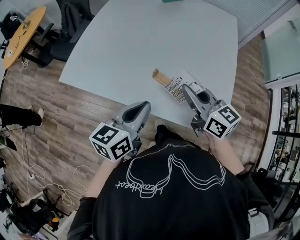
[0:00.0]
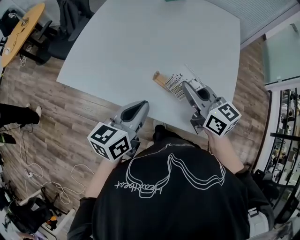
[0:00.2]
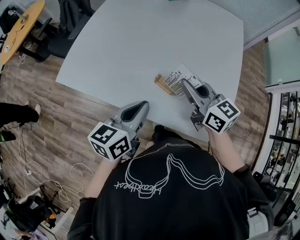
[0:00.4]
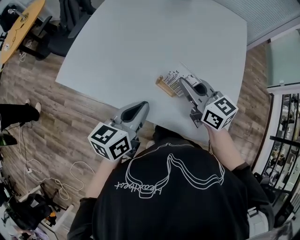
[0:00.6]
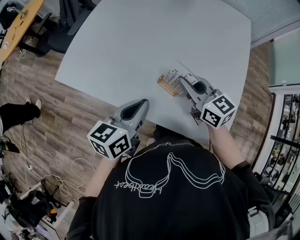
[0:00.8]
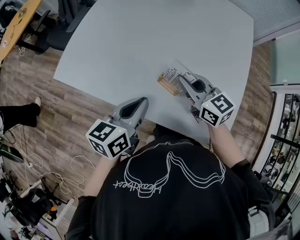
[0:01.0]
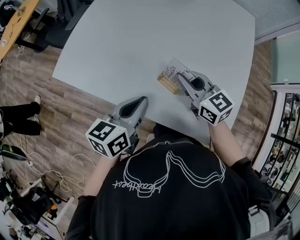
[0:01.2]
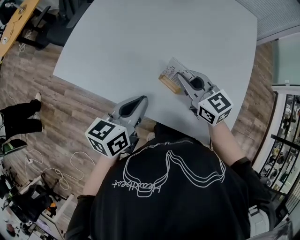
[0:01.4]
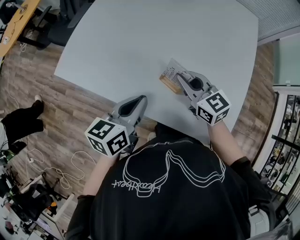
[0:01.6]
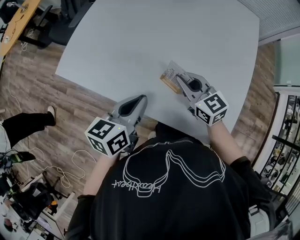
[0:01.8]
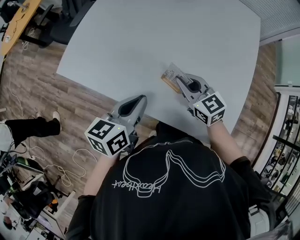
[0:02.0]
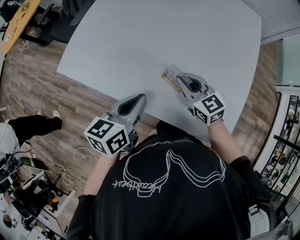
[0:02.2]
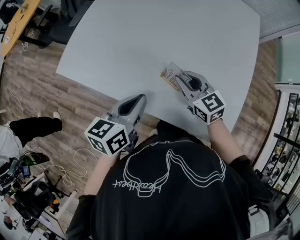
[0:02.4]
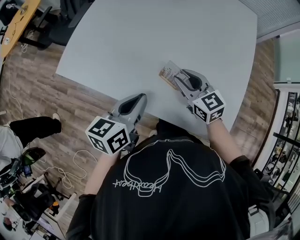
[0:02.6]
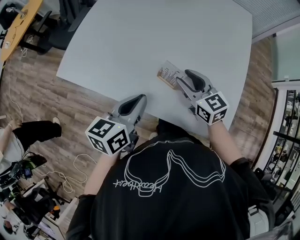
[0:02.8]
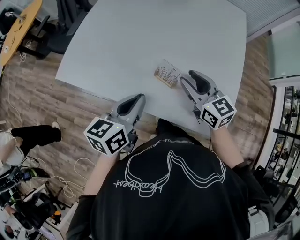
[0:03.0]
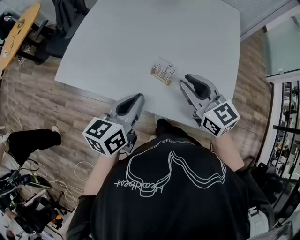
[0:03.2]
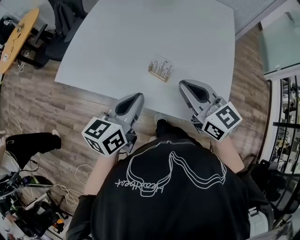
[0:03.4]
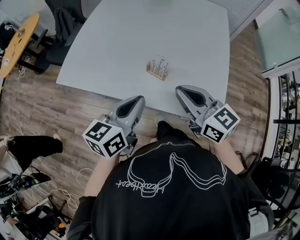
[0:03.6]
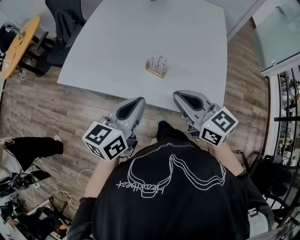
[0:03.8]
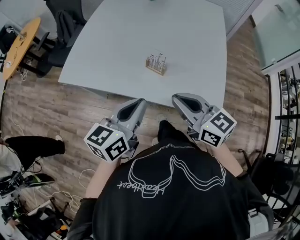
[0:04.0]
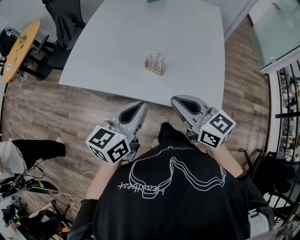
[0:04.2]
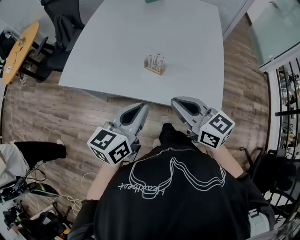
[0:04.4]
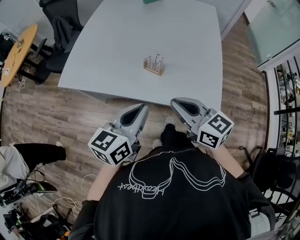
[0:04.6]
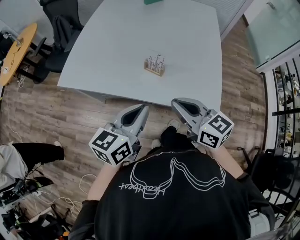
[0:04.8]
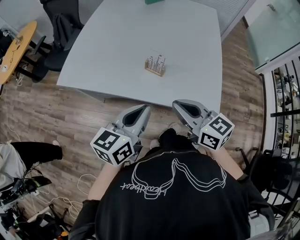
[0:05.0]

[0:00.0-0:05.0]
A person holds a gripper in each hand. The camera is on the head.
0:00.0 to 0:01.6: The two grippers go approximately 10 cm forward and downward.
0:01.6 to 0:03.4: The right gripper travels backward and upward by roughly 15 cm, and opens, then closes again; the left gripper travels backward by roughly 5 cm.
0:03.4 to 0:05.0: Both grippers move backward, approximately 10 cm.

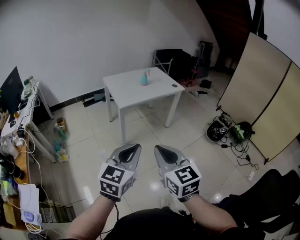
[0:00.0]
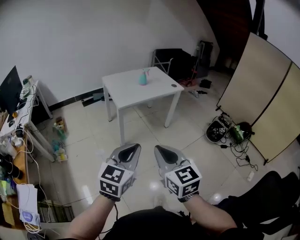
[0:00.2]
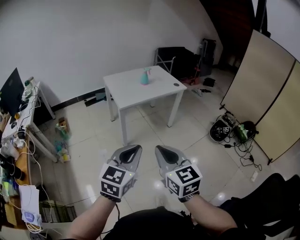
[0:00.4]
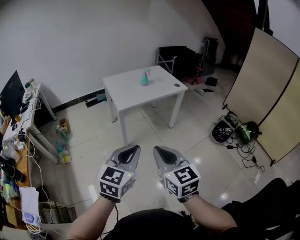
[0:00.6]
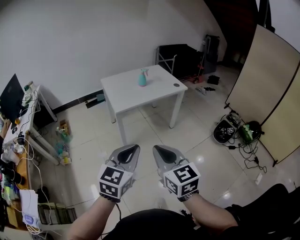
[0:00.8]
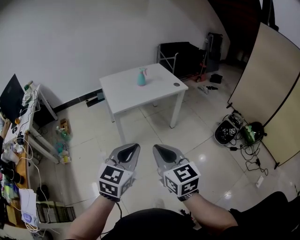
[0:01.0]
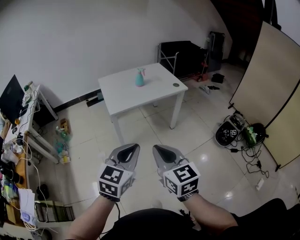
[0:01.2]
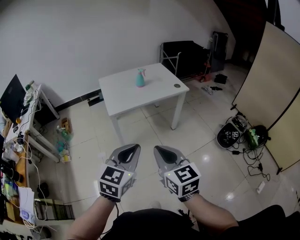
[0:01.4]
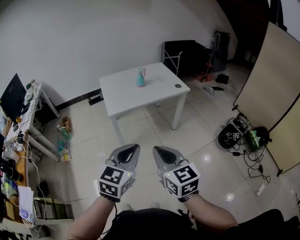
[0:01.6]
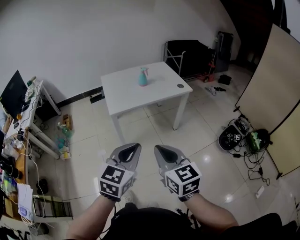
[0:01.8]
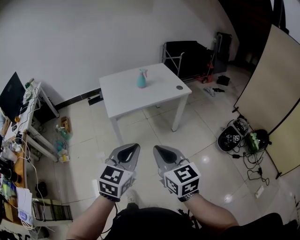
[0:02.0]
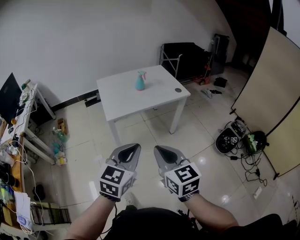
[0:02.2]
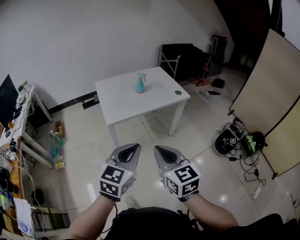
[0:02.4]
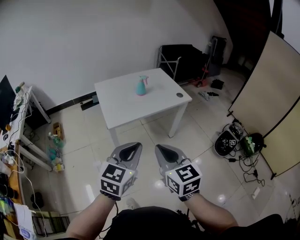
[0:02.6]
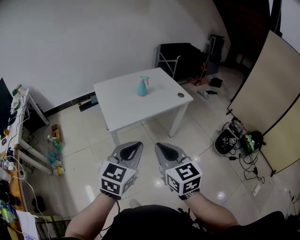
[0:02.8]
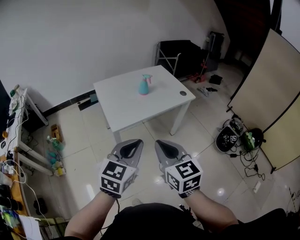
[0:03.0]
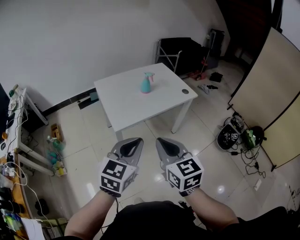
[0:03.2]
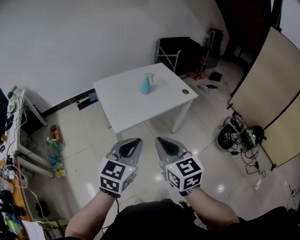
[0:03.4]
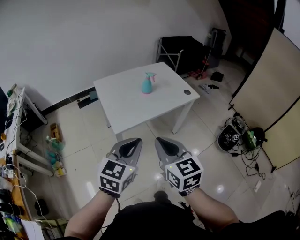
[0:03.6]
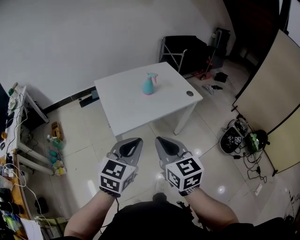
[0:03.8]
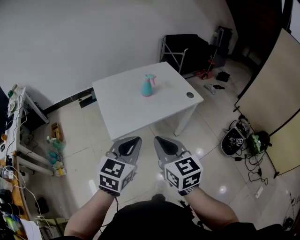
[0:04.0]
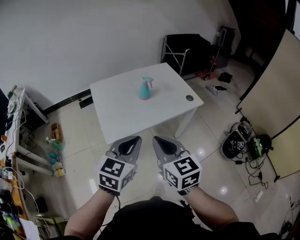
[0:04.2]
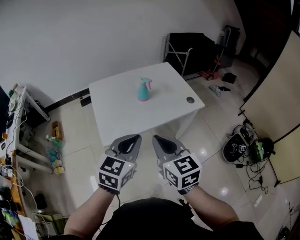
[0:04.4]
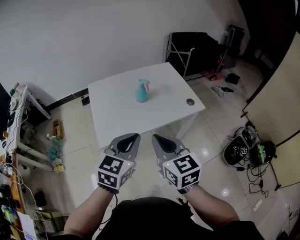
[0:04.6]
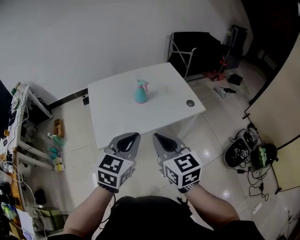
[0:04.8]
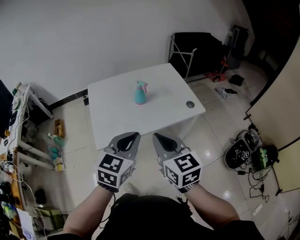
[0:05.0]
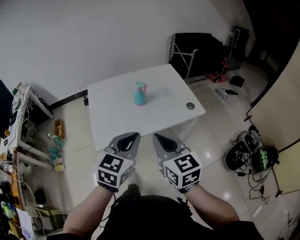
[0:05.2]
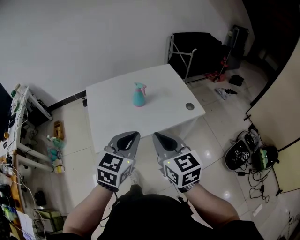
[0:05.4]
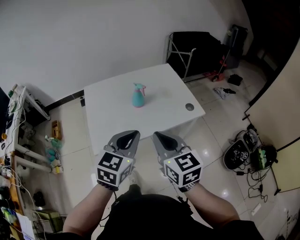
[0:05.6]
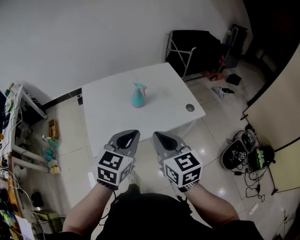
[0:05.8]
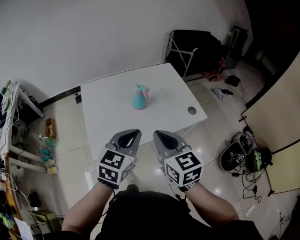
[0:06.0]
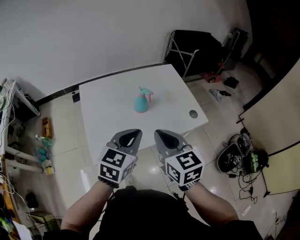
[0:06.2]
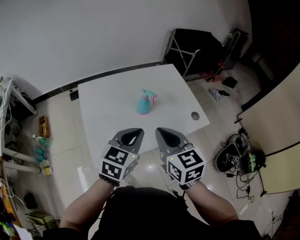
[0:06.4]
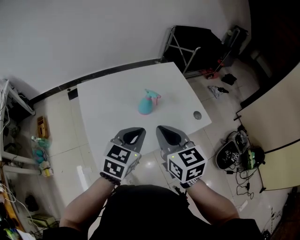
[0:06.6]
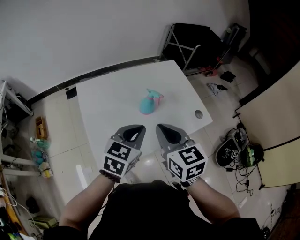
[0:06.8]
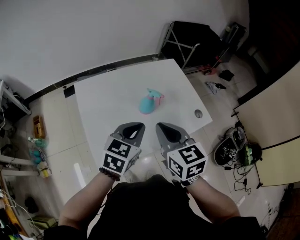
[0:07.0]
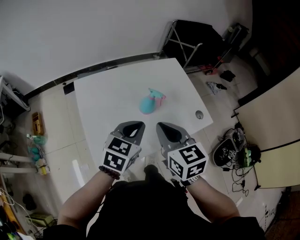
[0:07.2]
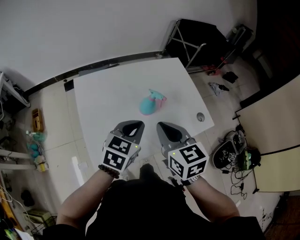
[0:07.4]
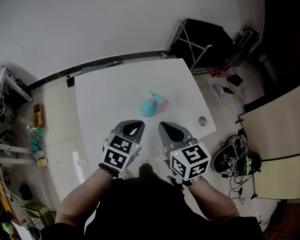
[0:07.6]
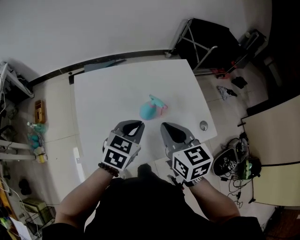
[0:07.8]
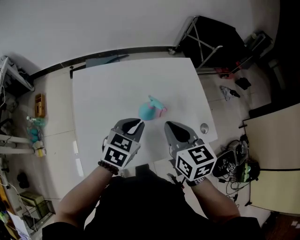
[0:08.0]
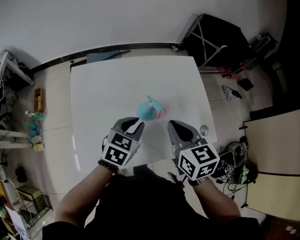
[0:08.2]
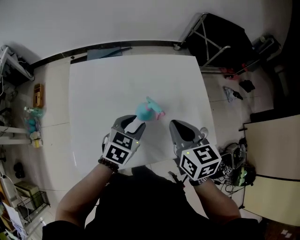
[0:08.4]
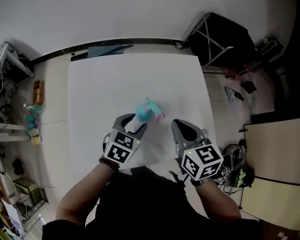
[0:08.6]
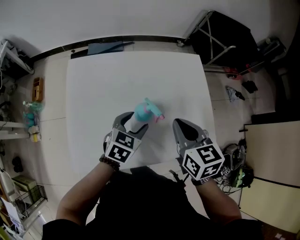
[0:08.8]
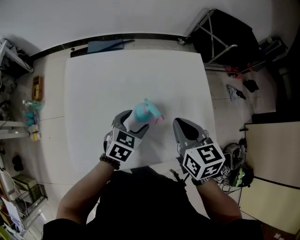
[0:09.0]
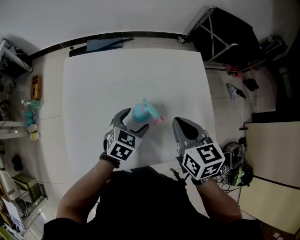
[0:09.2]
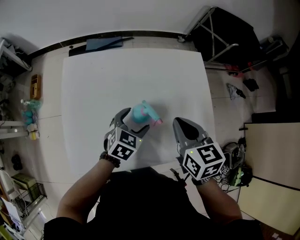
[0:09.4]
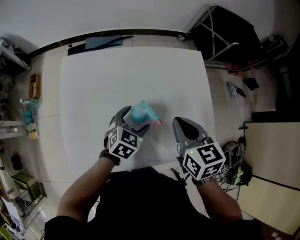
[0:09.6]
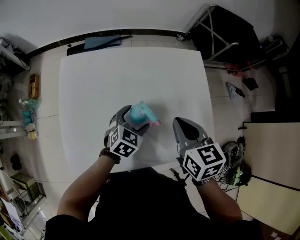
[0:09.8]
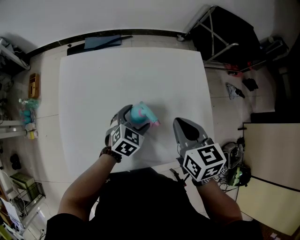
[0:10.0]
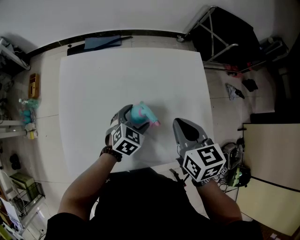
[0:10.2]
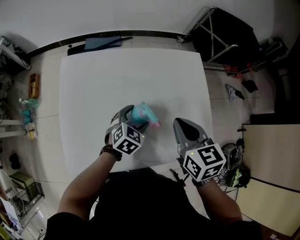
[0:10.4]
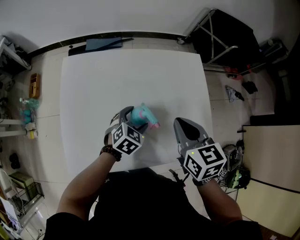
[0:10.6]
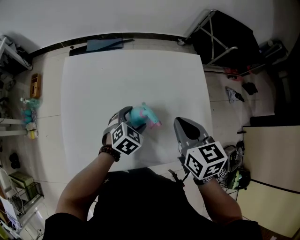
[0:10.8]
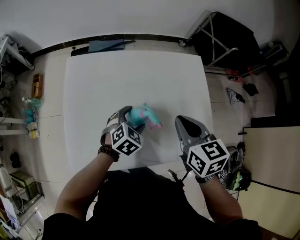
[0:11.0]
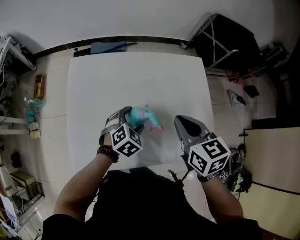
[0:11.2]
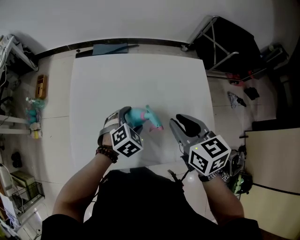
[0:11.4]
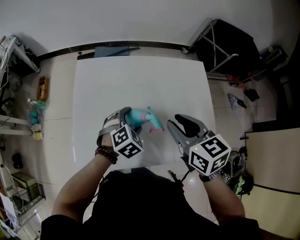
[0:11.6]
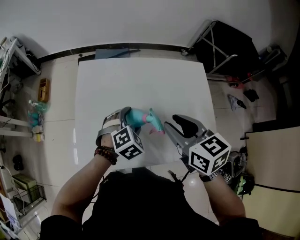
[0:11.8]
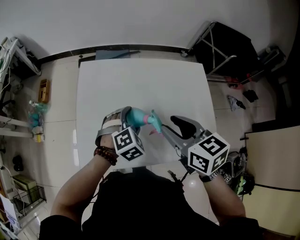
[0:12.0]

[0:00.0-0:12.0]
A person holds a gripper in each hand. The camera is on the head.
0:00.0 to 0:01.6: Both grippers move forward and to the right, roughly 25 cm.
0:01.6 to 0:03.0: The grippers both shift forward and to the left by about 20 cm.
0:03.0 to 0:04.4: Both grippers travel together forward, about 20 cm.
0:04.4 to 0:06.0: Both grippers move forward, about 15 cm.
0:06.0 to 0:07.6: The left gripper travels forward and downward by some 15 cm. Meanwhile the right gripper heads forward and to the left, covering approximately 15 cm.
0:07.6 to 0:09.0: The right gripper travels forward, to the right and downward by approximately 15 cm, while the left gripper is displaced downward and forward by roughly 15 cm, and opens its fingers.
0:09.0 to 0:10.4: The left gripper ends up some 5 cm from where it was.
0:10.4 to 0:12.0: The right gripper is displaced to the left by approximately 10 cm, and opens its fingers, while the left gripper moves to the left and upward, approximately 10 cm, and changes its angle by about 30 degrees.

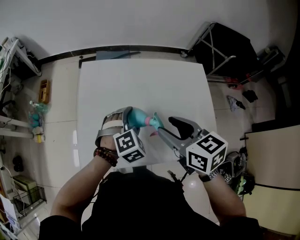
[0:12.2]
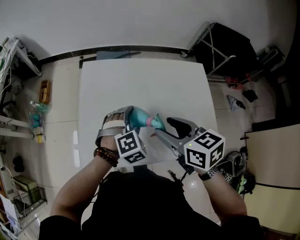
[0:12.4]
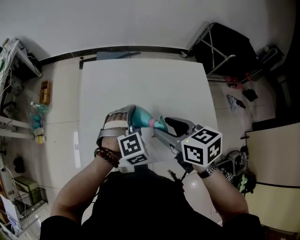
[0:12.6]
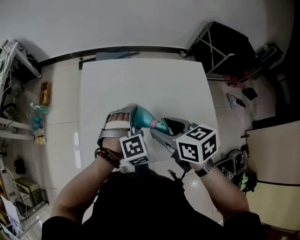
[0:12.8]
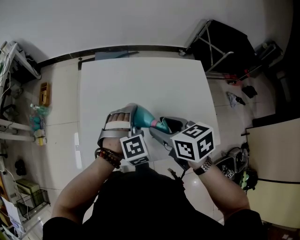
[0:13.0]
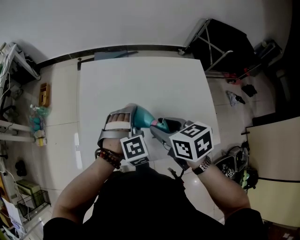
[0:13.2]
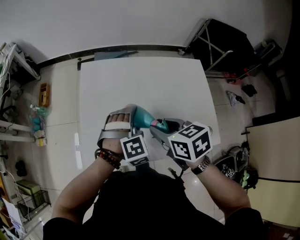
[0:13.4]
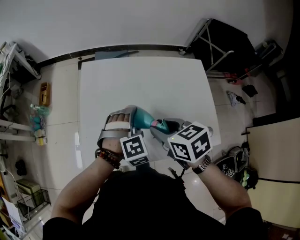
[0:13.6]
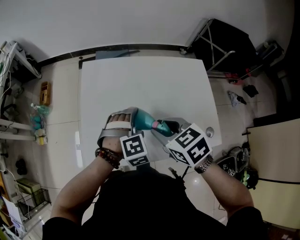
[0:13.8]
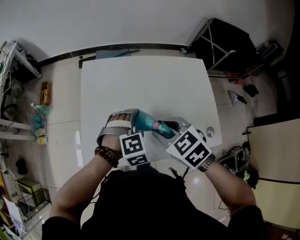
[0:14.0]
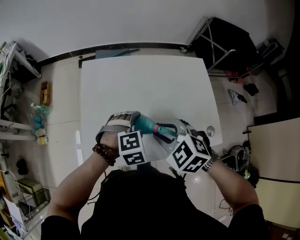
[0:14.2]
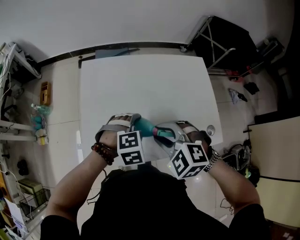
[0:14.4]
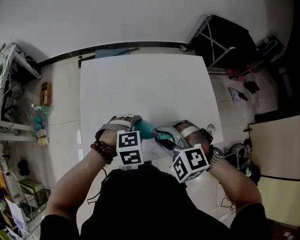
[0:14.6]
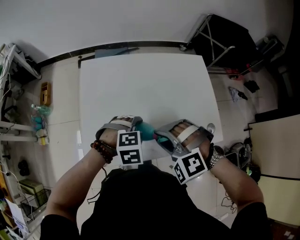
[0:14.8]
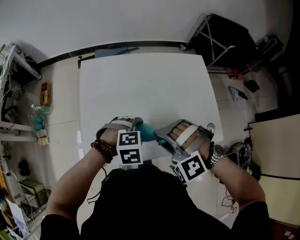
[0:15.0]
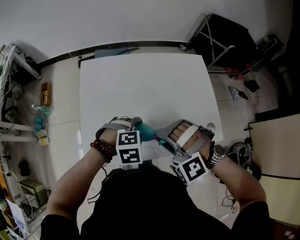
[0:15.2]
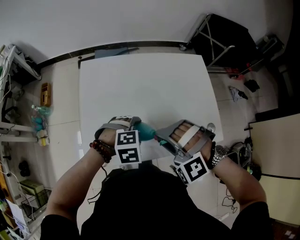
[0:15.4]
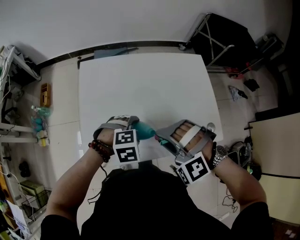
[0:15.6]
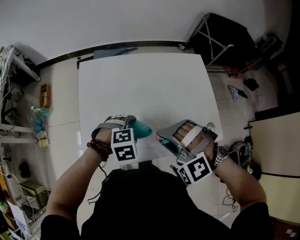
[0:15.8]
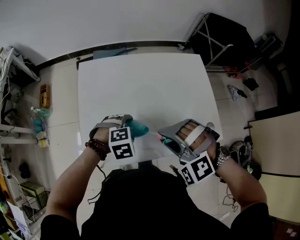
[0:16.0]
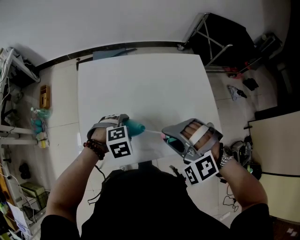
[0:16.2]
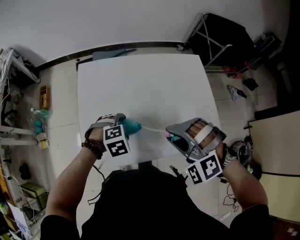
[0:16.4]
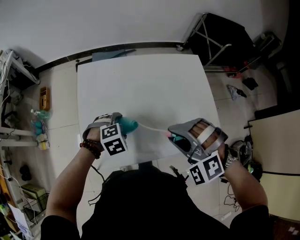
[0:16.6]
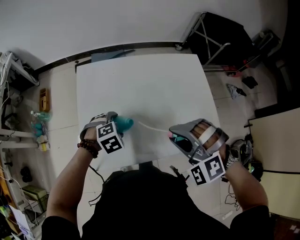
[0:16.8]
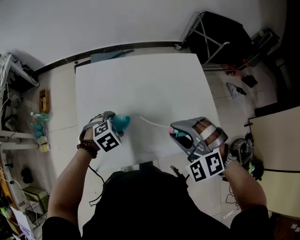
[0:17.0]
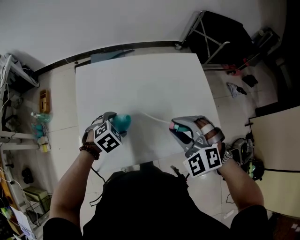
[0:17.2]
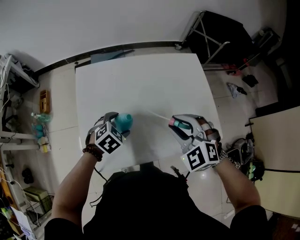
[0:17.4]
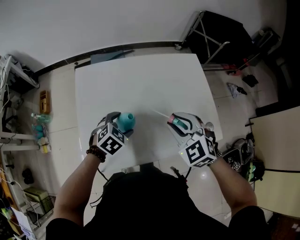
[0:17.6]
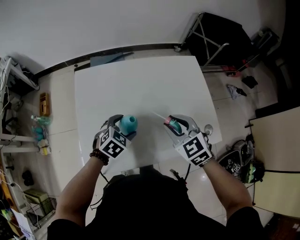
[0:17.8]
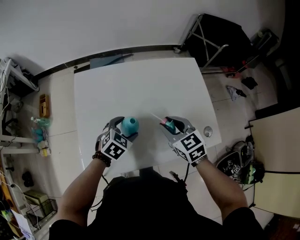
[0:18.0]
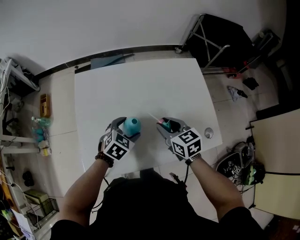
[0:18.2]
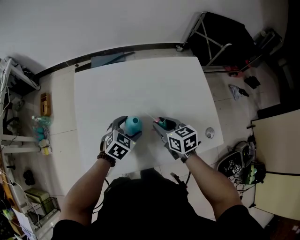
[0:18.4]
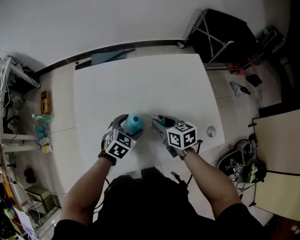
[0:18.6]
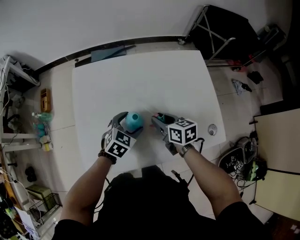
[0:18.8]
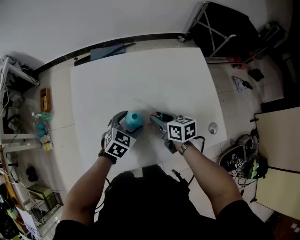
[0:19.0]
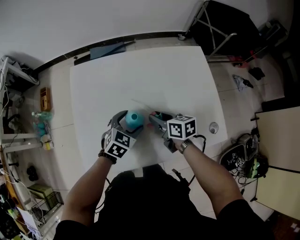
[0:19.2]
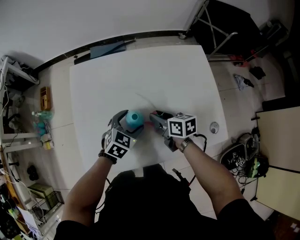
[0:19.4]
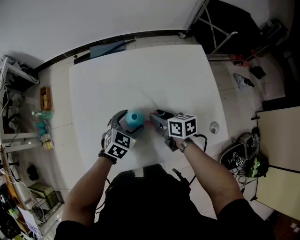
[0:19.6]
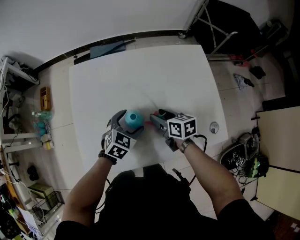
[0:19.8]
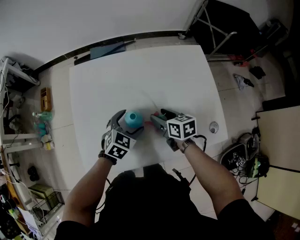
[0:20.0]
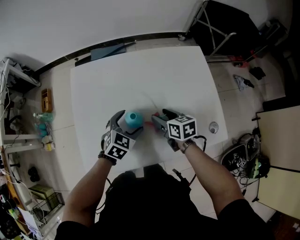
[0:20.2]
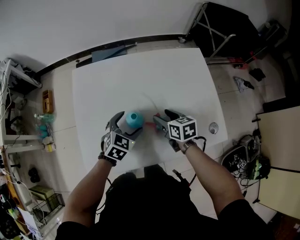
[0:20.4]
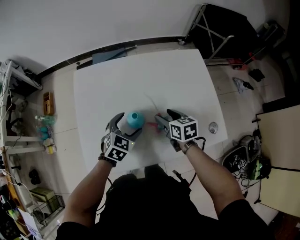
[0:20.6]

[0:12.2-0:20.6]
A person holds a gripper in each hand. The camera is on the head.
0:12.2 to 0:13.6: The right gripper moves about 5 cm.
0:13.6 to 0:15.0: The right gripper shifts by roughly 5 cm, and rolls counterclockwise, seen from behind, by approximately 90 degrees, while the left gripper moves about 10 cm, and rotates about 30 degrees.
0:15.0 to 0:16.4: The right gripper shifts by some 5 cm. The left gripper goes roughly 5 cm to the left.
0:16.4 to 0:17.8: The left gripper shifts by roughly 5 cm, and turns by roughly 30 degrees, while the right gripper is displaced forward and downward by some 10 cm, and rolls clockwise, seen from behind, by about 60 degrees.
0:17.8 to 0:19.2: The right gripper moves downward, roughly 15 cm, and rotates around the line of its fingers by approximately 50 degrees, clockwise from behind.
0:19.2 to 0:20.6: The right gripper opens its fingers.
